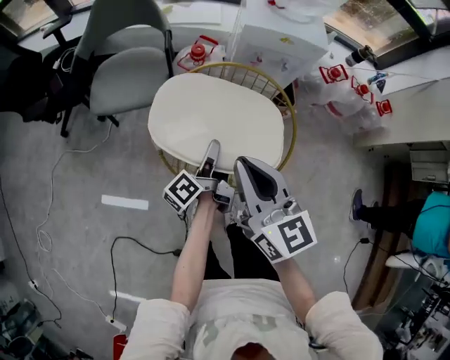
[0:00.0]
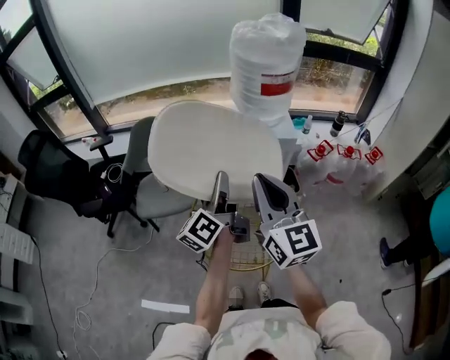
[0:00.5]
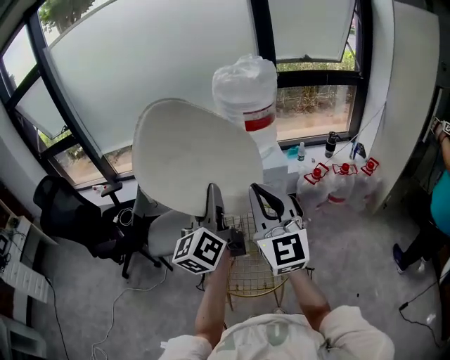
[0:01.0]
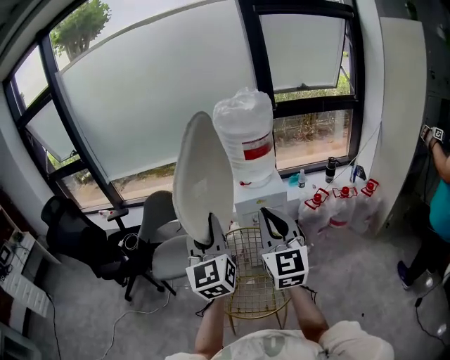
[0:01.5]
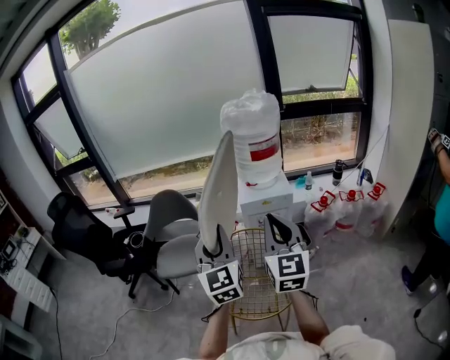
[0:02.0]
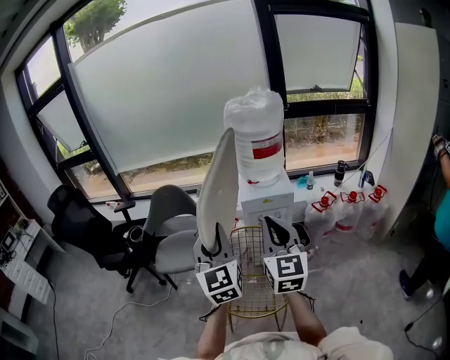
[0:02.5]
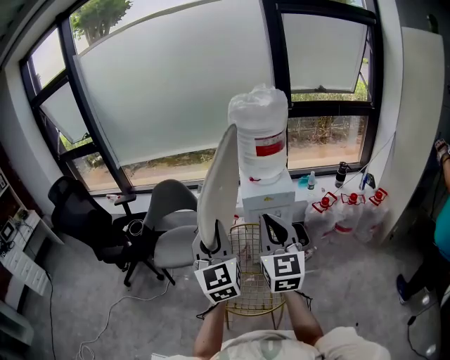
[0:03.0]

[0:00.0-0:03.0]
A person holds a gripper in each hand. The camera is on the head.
0:00.0 to 0:01.5: The right gripper goes some 30 cm upward and to the right, and rotates roughly 40 degrees, while the left gripper moves upward, approximately 50 cm, and twists some 90 degrees clockwise, seen from behind.
0:01.5 to 0:03.0: The grippers stay close to where they were, moving slightly.

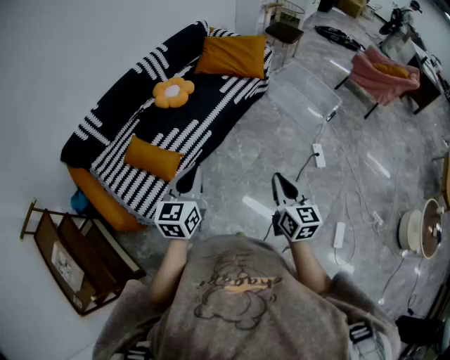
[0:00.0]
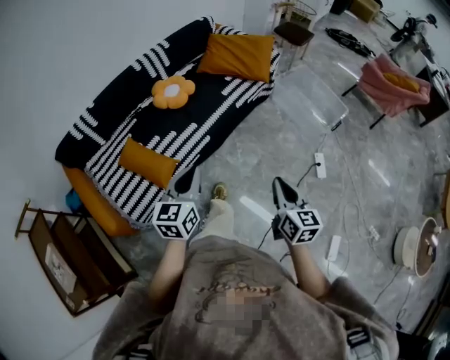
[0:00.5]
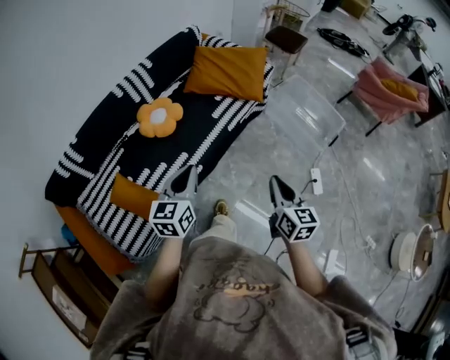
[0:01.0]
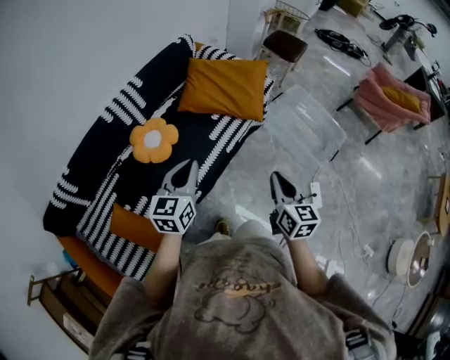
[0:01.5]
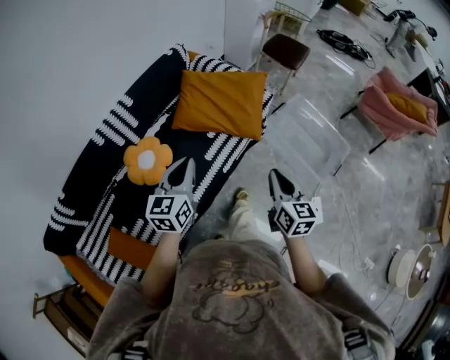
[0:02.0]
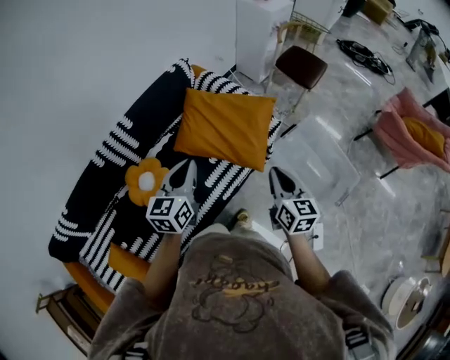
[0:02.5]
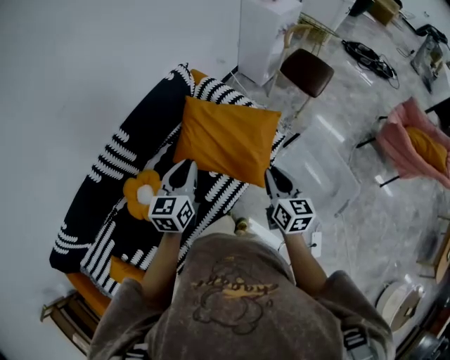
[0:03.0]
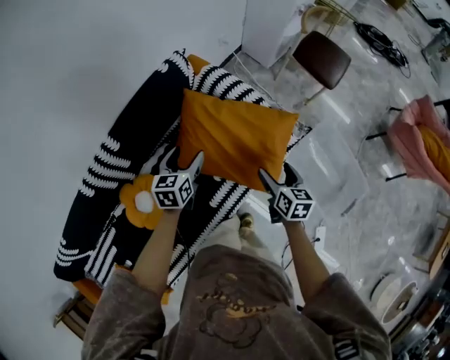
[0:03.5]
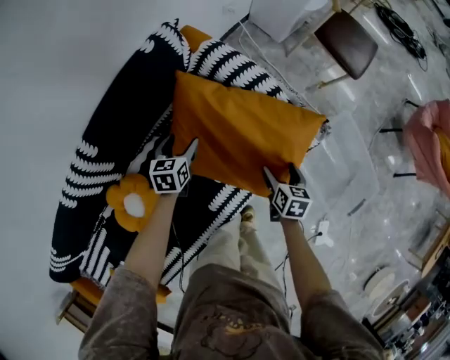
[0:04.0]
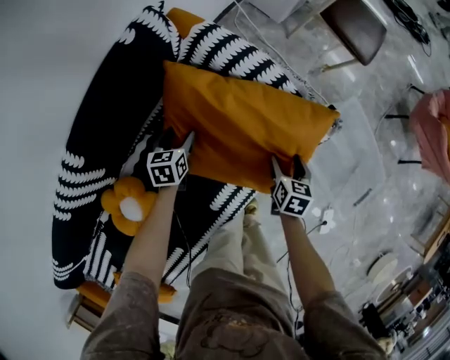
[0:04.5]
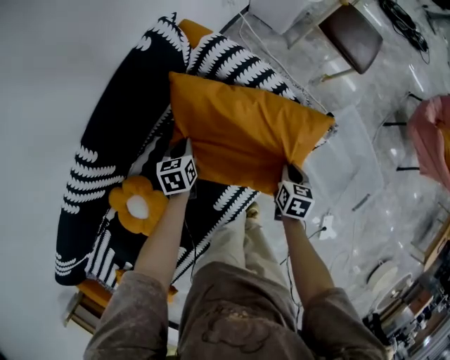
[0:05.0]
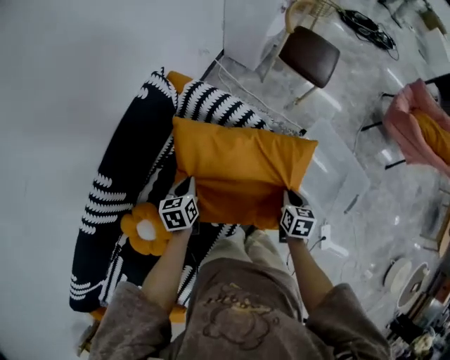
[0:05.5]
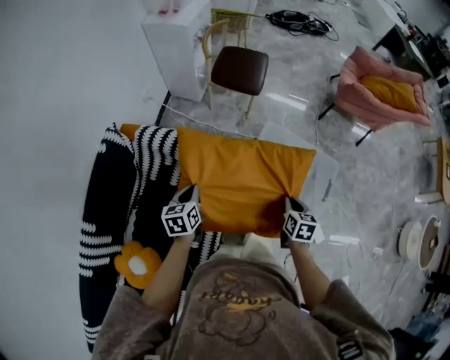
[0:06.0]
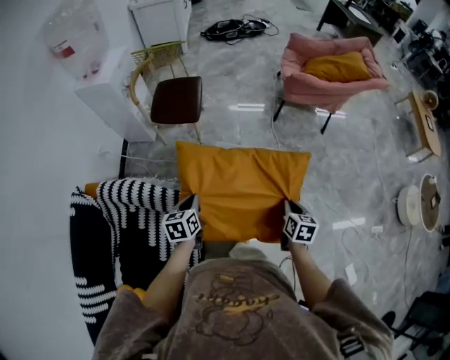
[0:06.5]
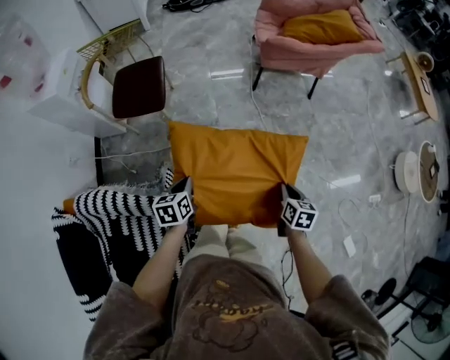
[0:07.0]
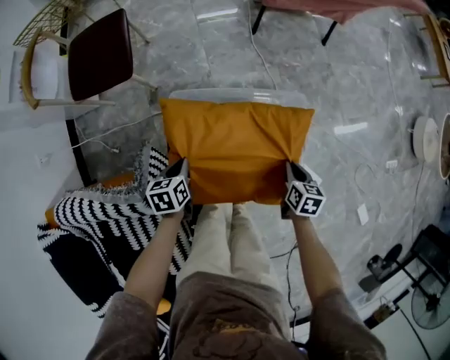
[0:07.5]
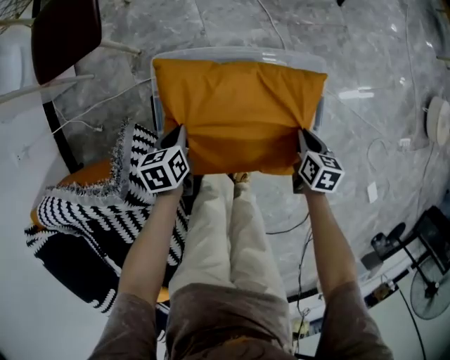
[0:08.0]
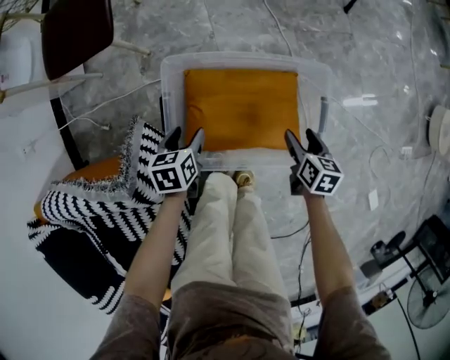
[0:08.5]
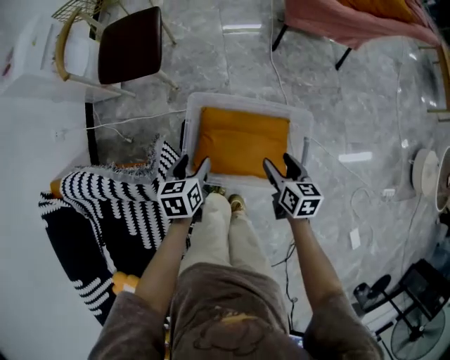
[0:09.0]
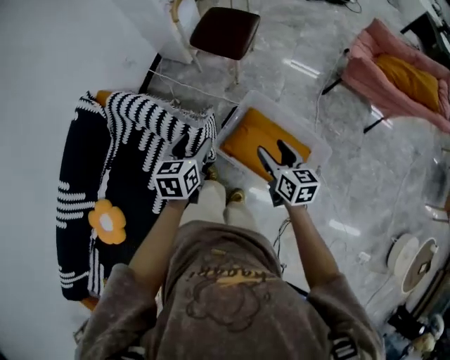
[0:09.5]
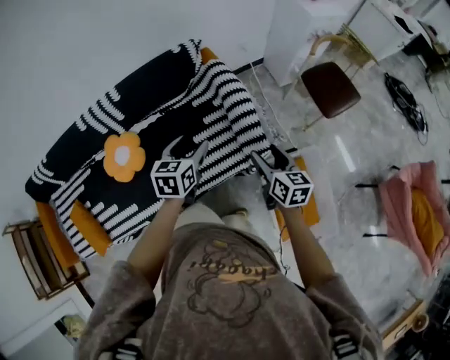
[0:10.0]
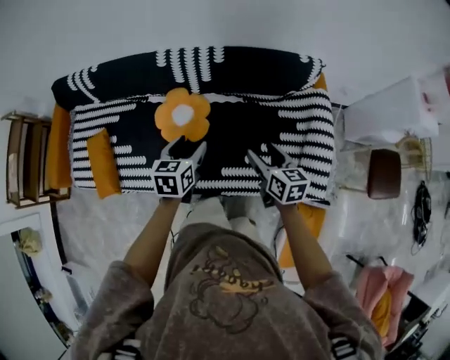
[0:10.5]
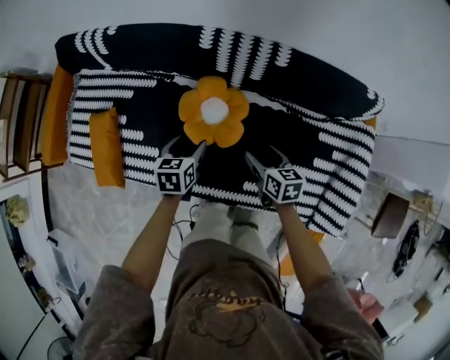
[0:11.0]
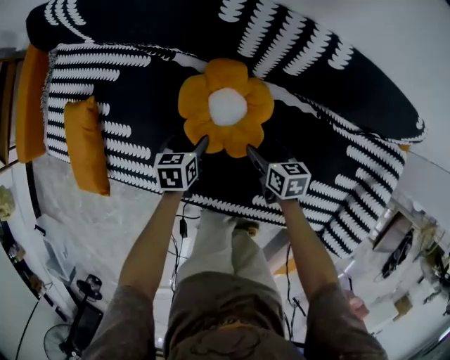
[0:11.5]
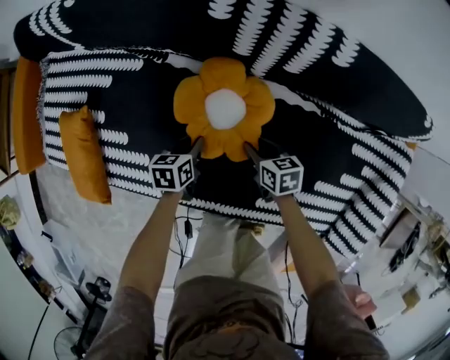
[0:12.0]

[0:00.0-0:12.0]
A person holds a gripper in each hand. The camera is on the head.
0:00.0 to 0:02.0: The pair of grippers is taken forward, approximately 70 cm.
0:02.0 to 0:04.0: Both grippers are carried forward, some 60 cm. Both grippers travel together downward, about 40 cm. The left gripper tilts its fingers about 30 degrees downward, and opens. The right gripper angles its fingers downward, by some 30 degrees, and opens up.
0:04.0 to 0:06.0: The left gripper shifts by some 35 cm, and closes up. The right gripper changes place by roughly 40 cm, swivels some 30 degrees, and closes its fingers.
0:06.0 to 0:08.0: The pair of grippers is taken about 50 cm. The left gripper swivels about 30 degrees; the right gripper changes its angle by roughly 30 degrees.
0:08.0 to 0:10.0: Both grippers are carried some 50 cm. The left gripper swivels some 70 degrees, and opens. Meanwhile the right gripper points its fingers about 30 degrees further upward, and opens its fingers.
0:10.0 to 0:12.0: The two grippers travel together, approximately 70 cm. The left gripper rotates around the line of its fingers by some 40 degrees, counterclockwise from behind, and closes its fingers. Meanwhile the right gripper turns by some 60 degrees.

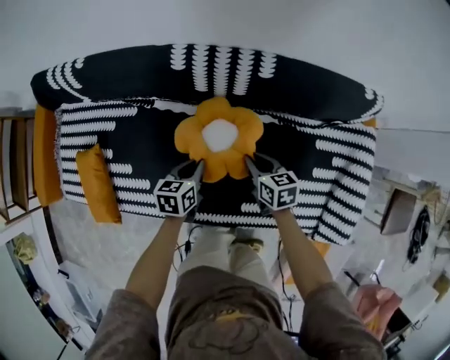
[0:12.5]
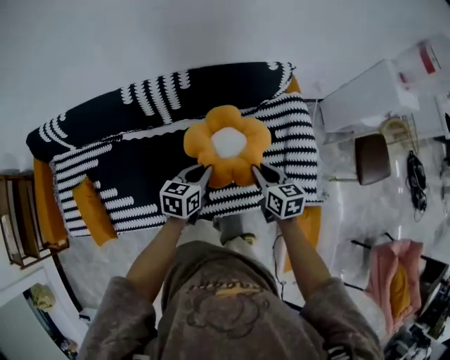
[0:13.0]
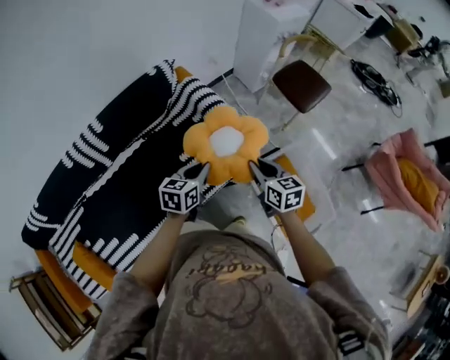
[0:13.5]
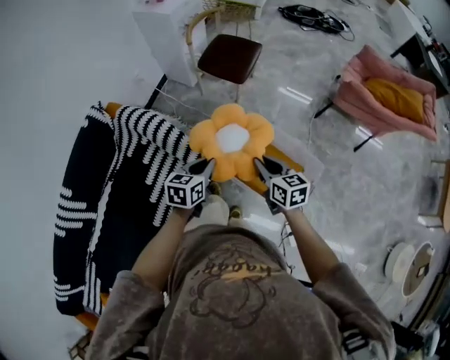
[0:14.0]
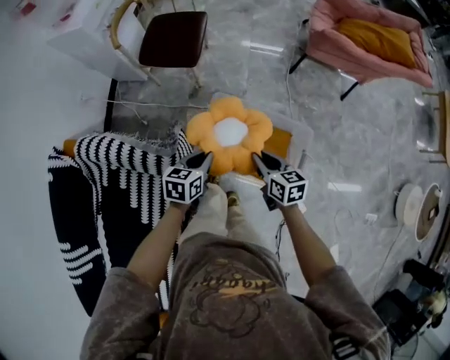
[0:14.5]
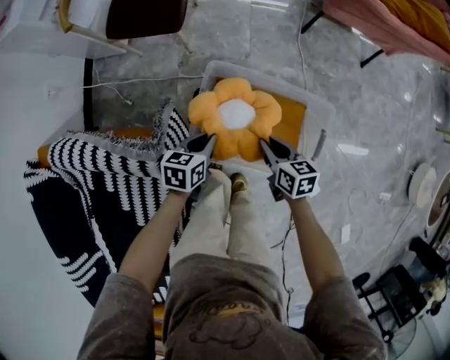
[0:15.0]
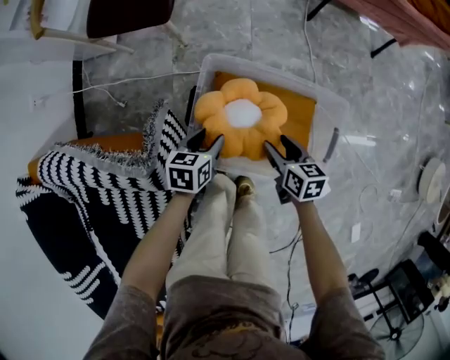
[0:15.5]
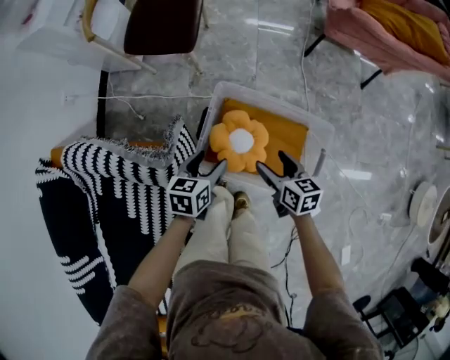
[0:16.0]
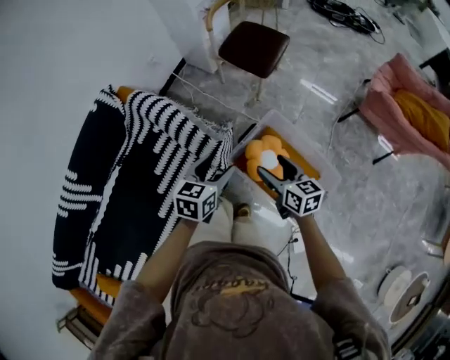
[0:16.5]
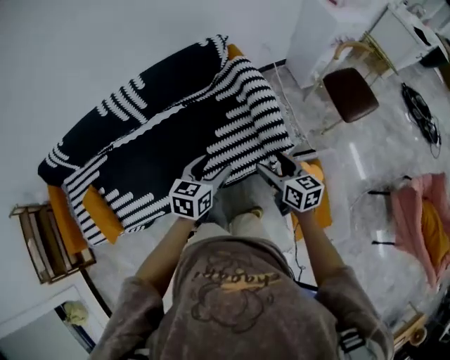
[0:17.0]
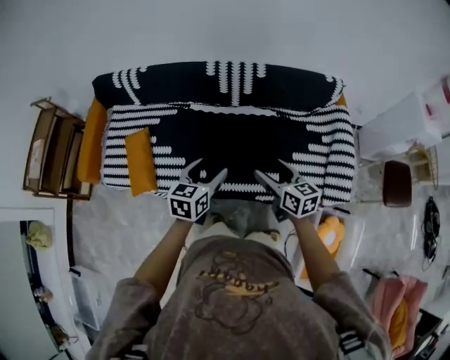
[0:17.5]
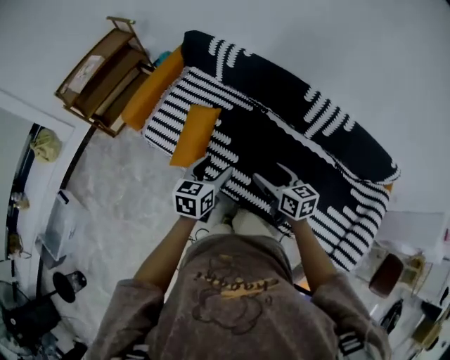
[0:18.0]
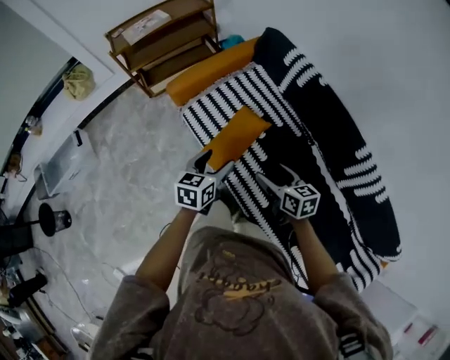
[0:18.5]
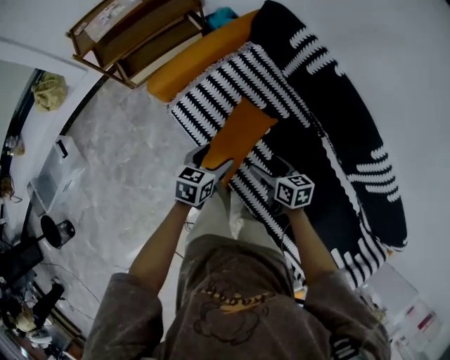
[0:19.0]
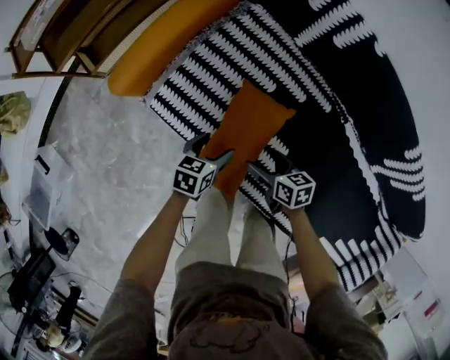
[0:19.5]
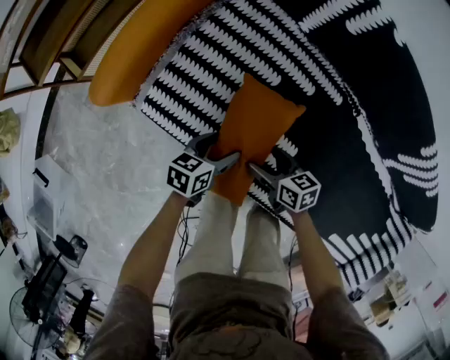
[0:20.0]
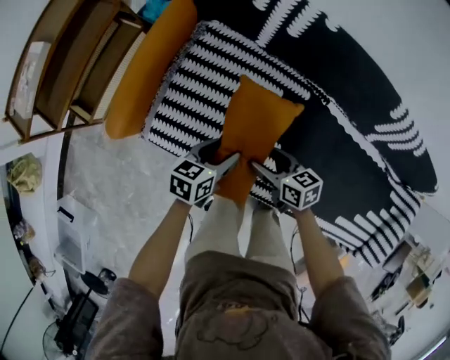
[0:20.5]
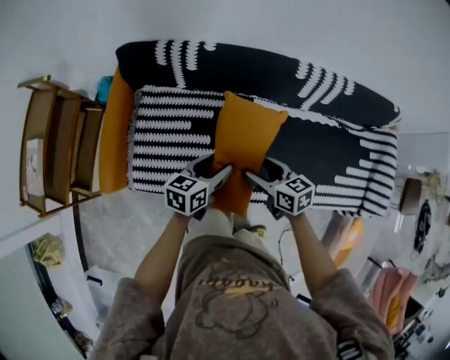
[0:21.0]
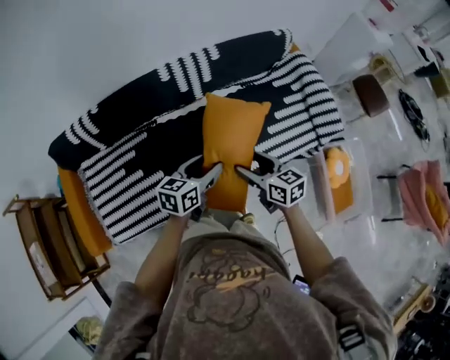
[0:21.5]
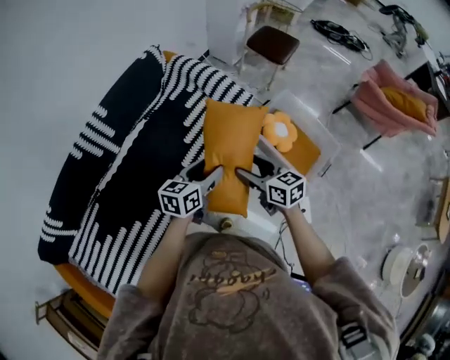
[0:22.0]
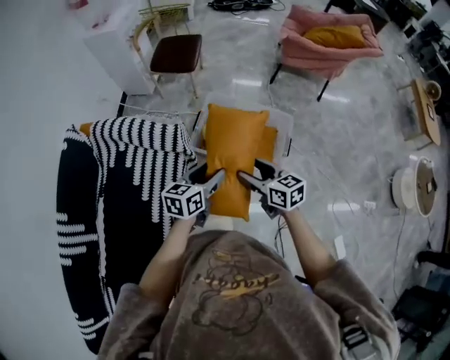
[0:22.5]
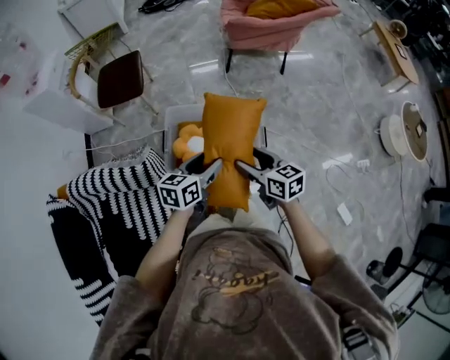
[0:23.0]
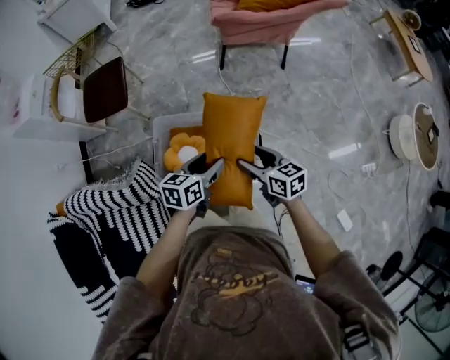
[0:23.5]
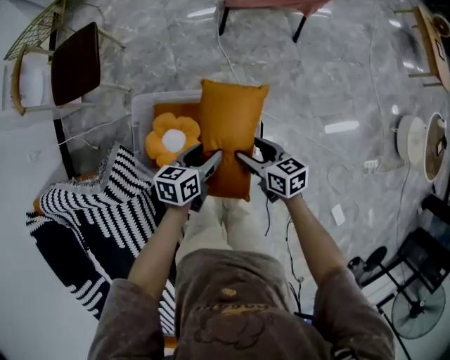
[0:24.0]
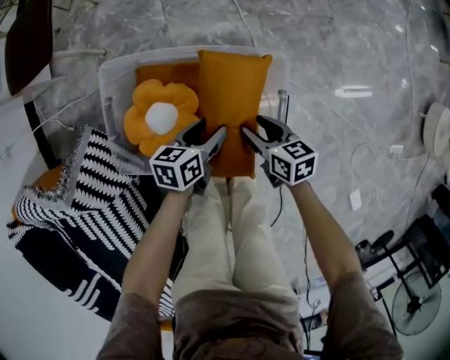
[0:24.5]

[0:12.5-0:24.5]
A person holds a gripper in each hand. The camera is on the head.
0:12.5 to 0:14.5: The two grippers travel together, approximately 1 m. The left gripper changes its angle by approximately 100 degrees. Meanwhile the right gripper changes its angle by some 90 degrees.
0:14.5 to 0:16.5: The right gripper reaches approximately 30 cm downward, then returns, turns by roughly 30 degrees, and opens its fingers. Meanwhile the left gripper goes downward and returns, roughly 30 cm each way, swivels about 30 degrees, and opens up.
0:16.5 to 0:18.5: Both grippers are carried roughly 1 m. The left gripper rotates approximately 120 degrees; the right gripper turns by about 110 degrees.
0:18.5 to 0:20.5: Both grippers move downward, approximately 25 cm. The right gripper turns by approximately 20 degrees; the left gripper swivels roughly 40 degrees.
0:20.5 to 0:22.5: Both grippers are carried roughly 1 m. The right gripper rotates approximately 110 degrees, while the left gripper turns by about 100 degrees.
0:22.5 to 0:24.5: Both grippers are carried forward and to the right, roughly 50 cm. Both grippers travel together downward, about 50 cm. The right gripper turns by some 30 degrees; the left gripper changes its angle by roughly 30 degrees.
